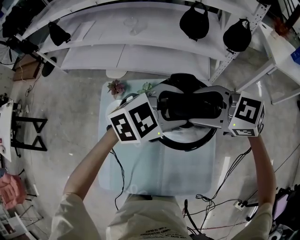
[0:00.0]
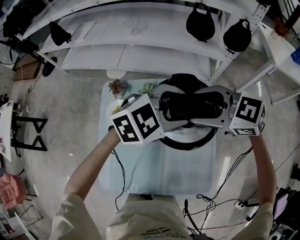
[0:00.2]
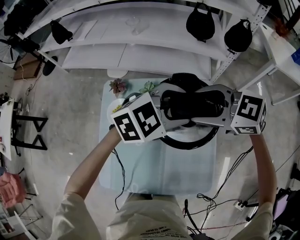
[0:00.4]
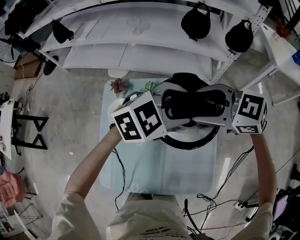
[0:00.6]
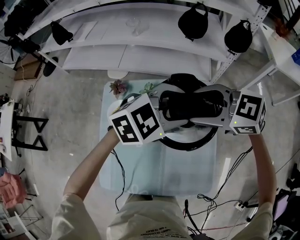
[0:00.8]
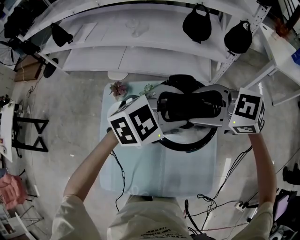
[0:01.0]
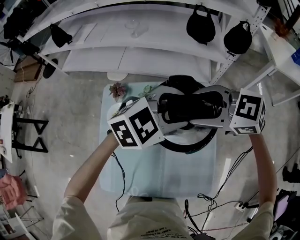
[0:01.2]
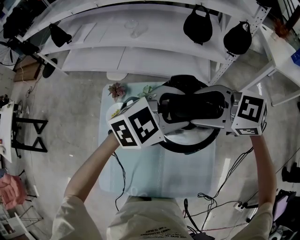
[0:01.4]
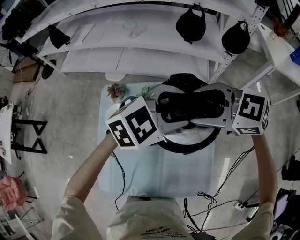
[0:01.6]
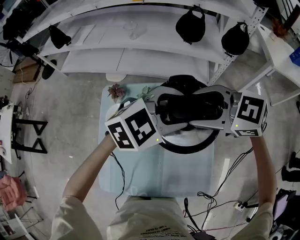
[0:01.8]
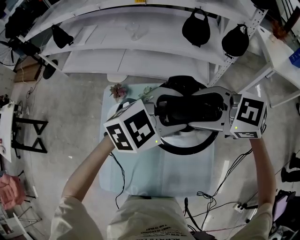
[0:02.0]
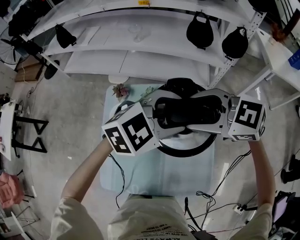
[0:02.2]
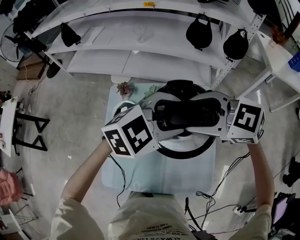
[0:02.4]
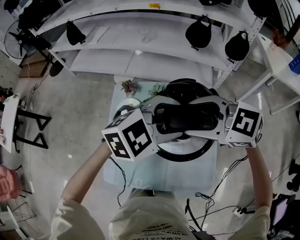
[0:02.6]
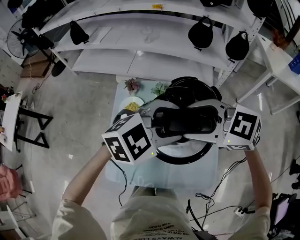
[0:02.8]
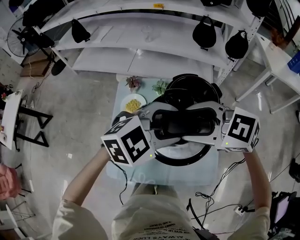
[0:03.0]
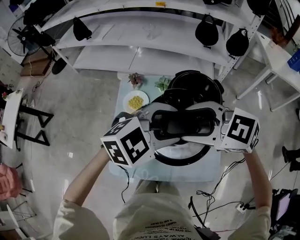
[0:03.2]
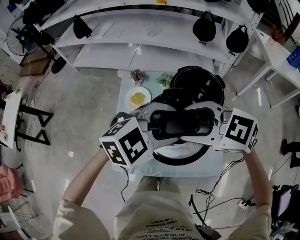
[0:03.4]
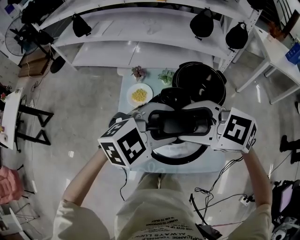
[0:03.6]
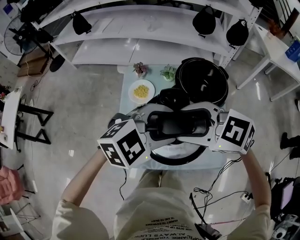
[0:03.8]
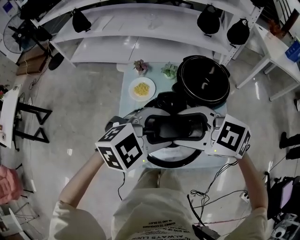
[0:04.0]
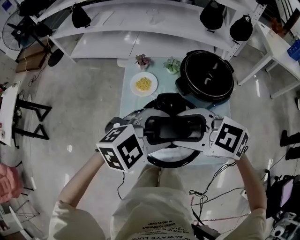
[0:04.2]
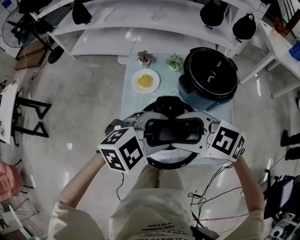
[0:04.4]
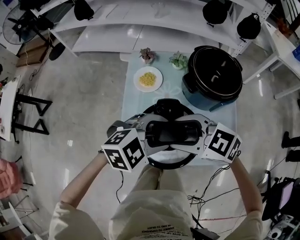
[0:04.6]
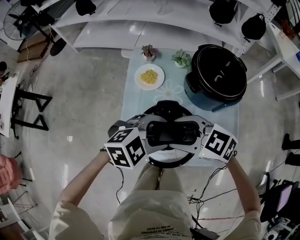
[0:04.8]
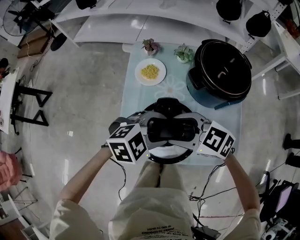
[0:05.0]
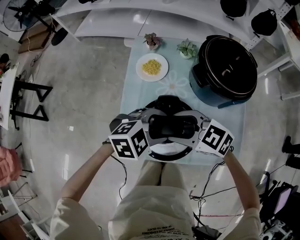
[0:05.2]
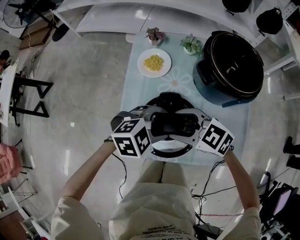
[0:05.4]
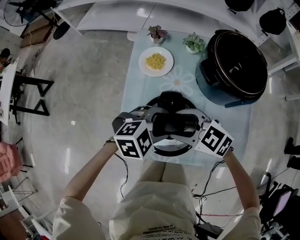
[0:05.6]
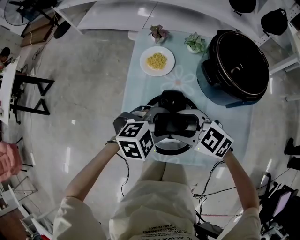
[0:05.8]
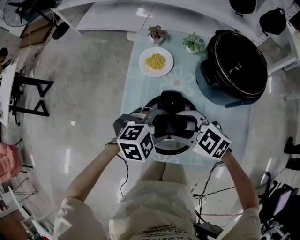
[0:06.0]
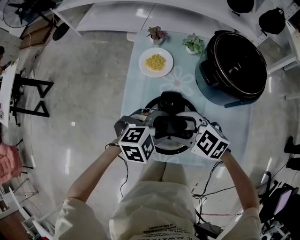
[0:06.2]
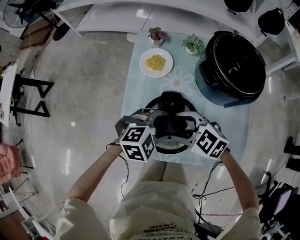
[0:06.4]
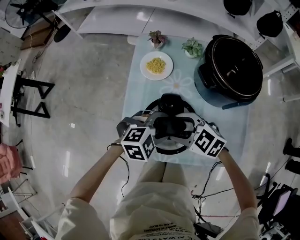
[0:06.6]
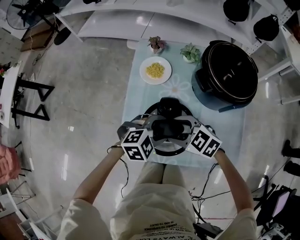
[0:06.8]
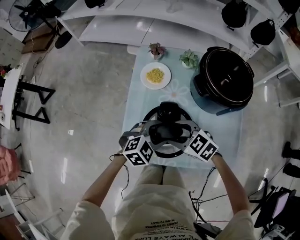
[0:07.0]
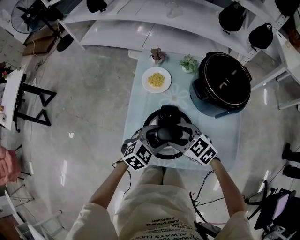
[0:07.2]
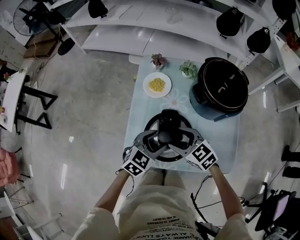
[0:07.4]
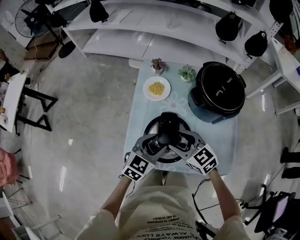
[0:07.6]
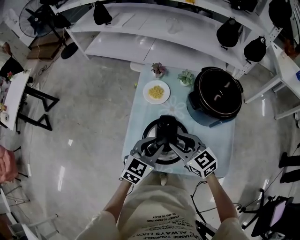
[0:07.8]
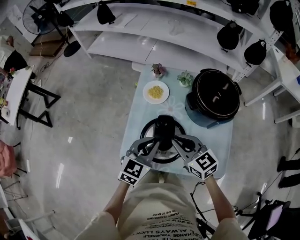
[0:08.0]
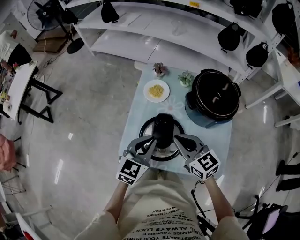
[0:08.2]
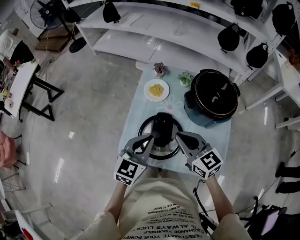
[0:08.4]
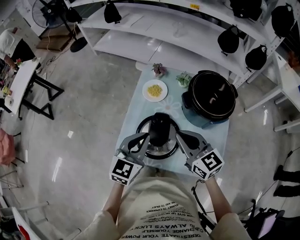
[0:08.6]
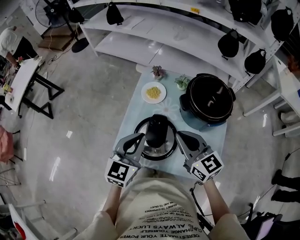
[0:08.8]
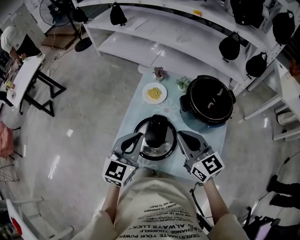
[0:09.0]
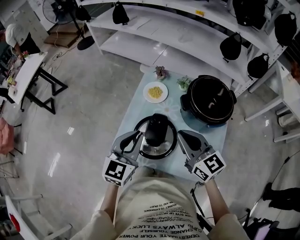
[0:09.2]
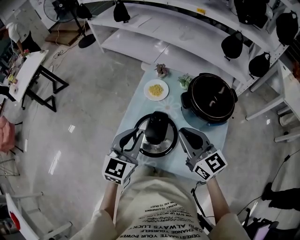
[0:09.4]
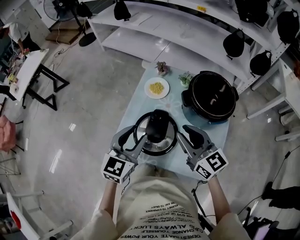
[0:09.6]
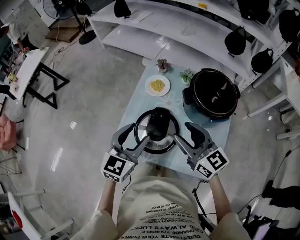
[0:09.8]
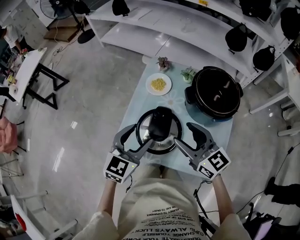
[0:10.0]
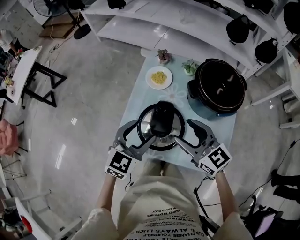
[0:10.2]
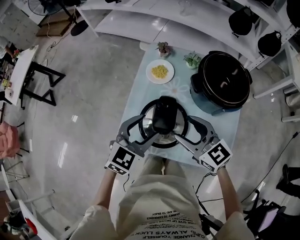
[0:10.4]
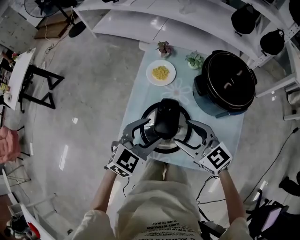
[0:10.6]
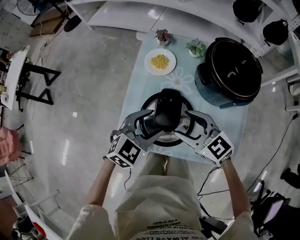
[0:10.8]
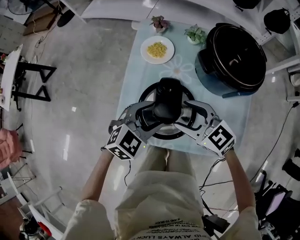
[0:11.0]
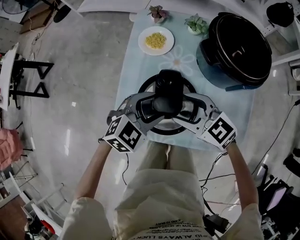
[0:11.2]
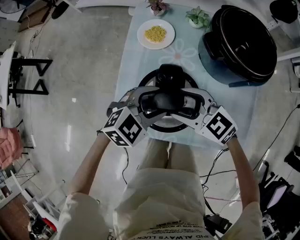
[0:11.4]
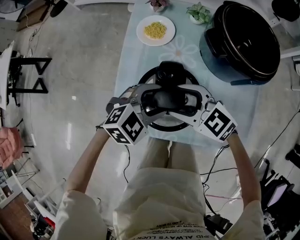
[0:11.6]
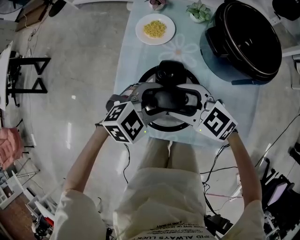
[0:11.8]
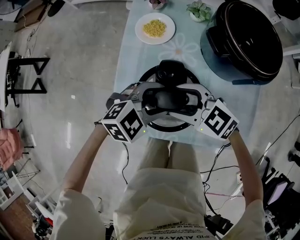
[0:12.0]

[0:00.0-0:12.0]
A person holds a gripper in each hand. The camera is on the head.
0:00.0 to 0:01.6: The grippers make only small movements.
0:01.6 to 0:03.0: The left gripper shifts by approximately 15 cm; the right gripper moves some 15 cm.
0:03.0 to 0:04.4: The left gripper moves approximately 15 cm, while the right gripper moves roughly 15 cm.
0:04.4 to 0:06.0: The two grippers go approximately 15 cm downward.
0:06.0 to 0:07.6: The right gripper ends up roughly 5 cm from where it was, and turns by roughly 20 degrees; the left gripper goes about 5 cm upward, and rotates about 50 degrees.
0:07.6 to 0:09.0: The right gripper goes roughly 15 cm upward and to the right, swivels approximately 20 degrees, and closes its fingers. Meanwhile the left gripper goes approximately 15 cm upward, turns by some 30 degrees, and closes.
0:09.0 to 0:10.4: The grippers both shift downward by roughly 5 cm. The right gripper opens its fingers, while the left gripper turns by some 20 degrees, and opens its fingers.
0:10.4 to 0:12.0: The grippers both shift downward by about 15 cm. The left gripper turns by approximately 40 degrees; the right gripper turns by about 20 degrees.

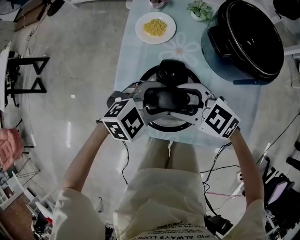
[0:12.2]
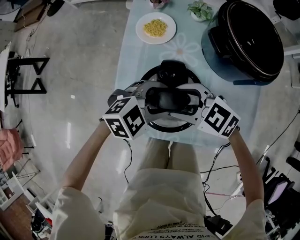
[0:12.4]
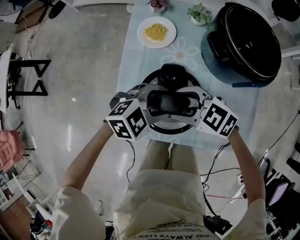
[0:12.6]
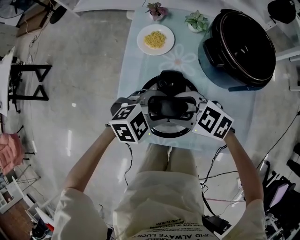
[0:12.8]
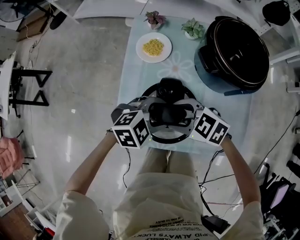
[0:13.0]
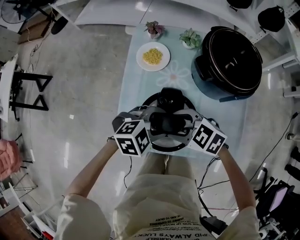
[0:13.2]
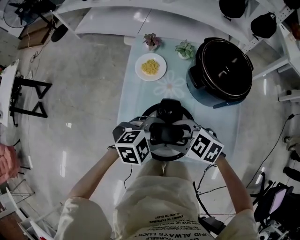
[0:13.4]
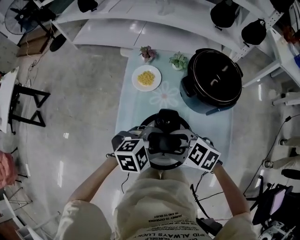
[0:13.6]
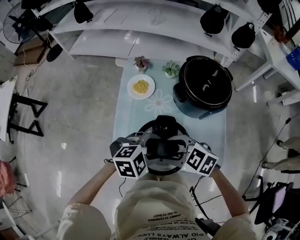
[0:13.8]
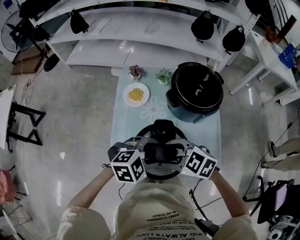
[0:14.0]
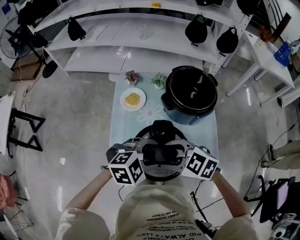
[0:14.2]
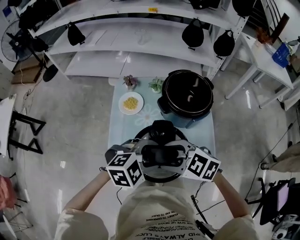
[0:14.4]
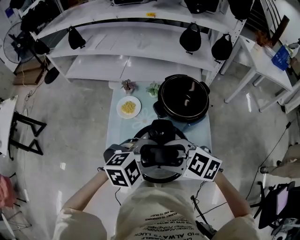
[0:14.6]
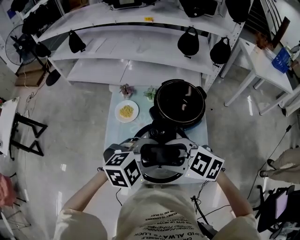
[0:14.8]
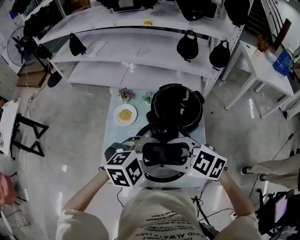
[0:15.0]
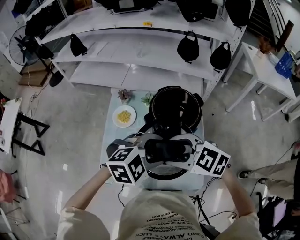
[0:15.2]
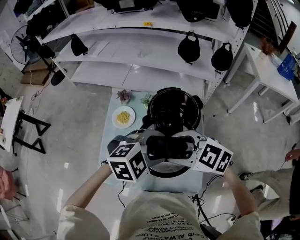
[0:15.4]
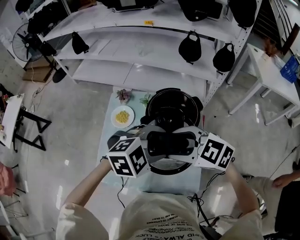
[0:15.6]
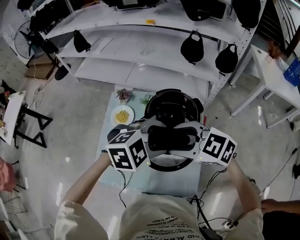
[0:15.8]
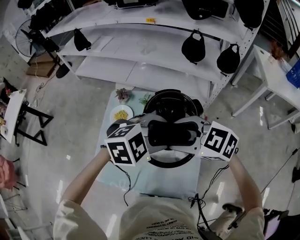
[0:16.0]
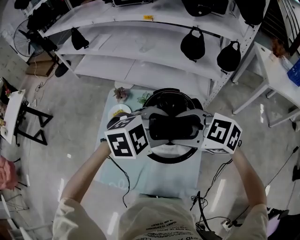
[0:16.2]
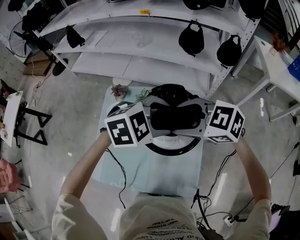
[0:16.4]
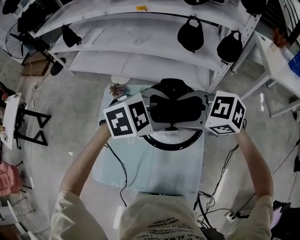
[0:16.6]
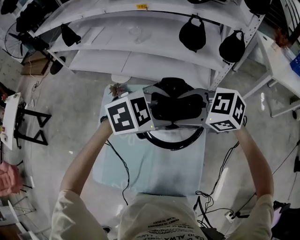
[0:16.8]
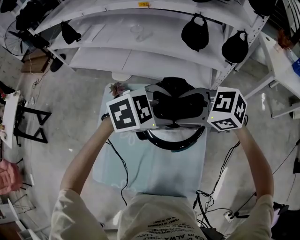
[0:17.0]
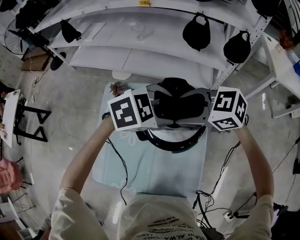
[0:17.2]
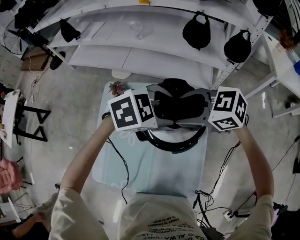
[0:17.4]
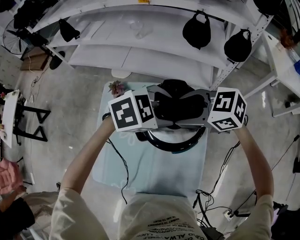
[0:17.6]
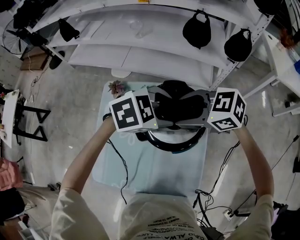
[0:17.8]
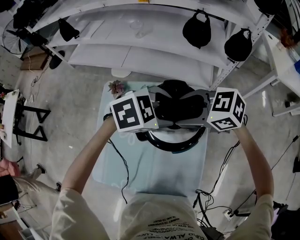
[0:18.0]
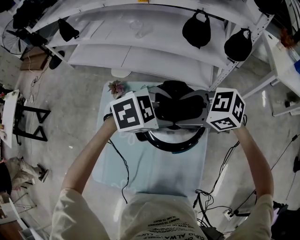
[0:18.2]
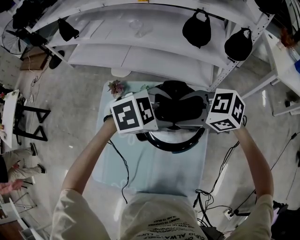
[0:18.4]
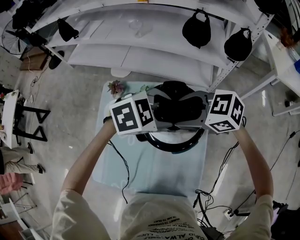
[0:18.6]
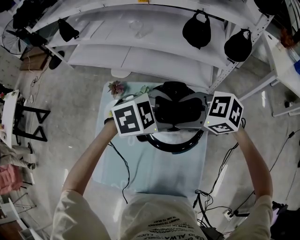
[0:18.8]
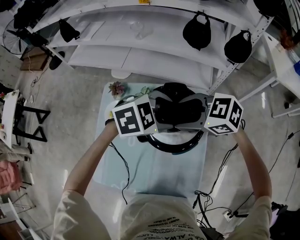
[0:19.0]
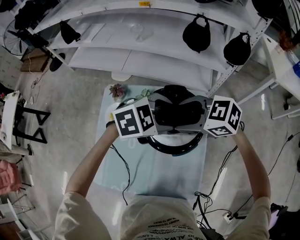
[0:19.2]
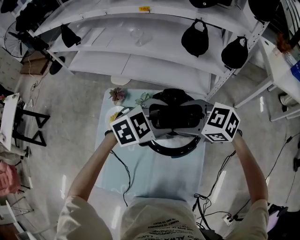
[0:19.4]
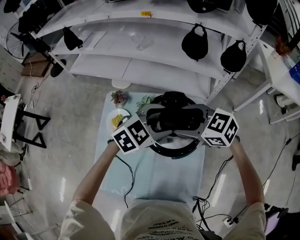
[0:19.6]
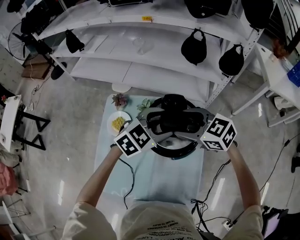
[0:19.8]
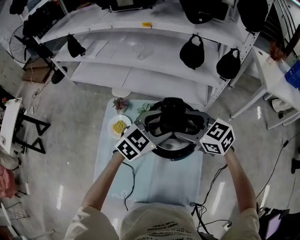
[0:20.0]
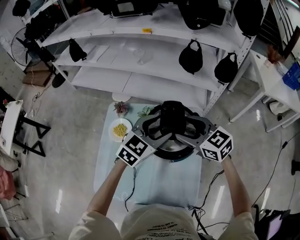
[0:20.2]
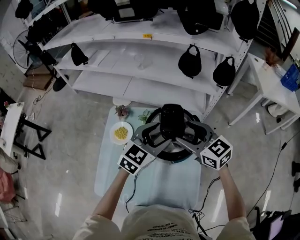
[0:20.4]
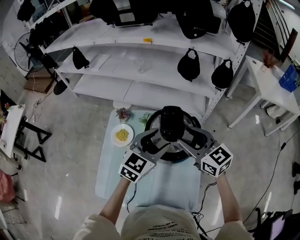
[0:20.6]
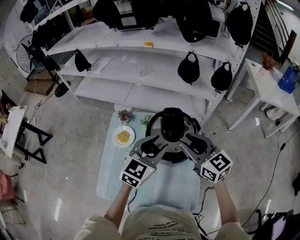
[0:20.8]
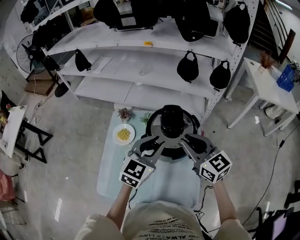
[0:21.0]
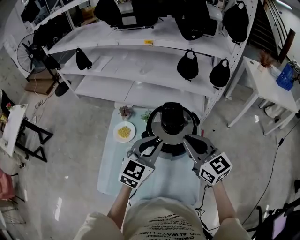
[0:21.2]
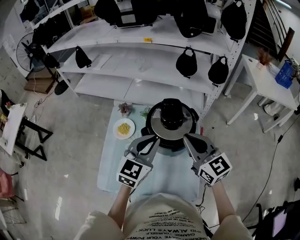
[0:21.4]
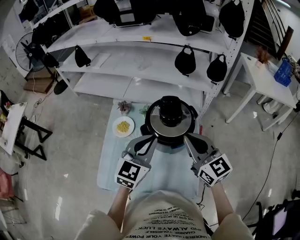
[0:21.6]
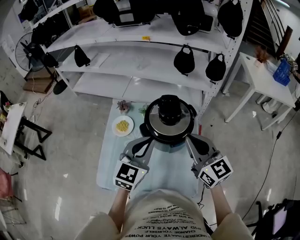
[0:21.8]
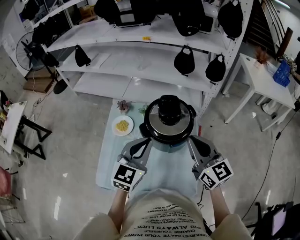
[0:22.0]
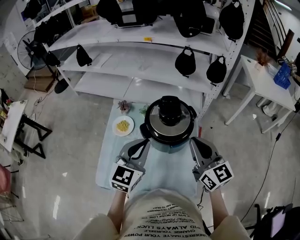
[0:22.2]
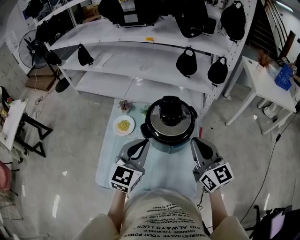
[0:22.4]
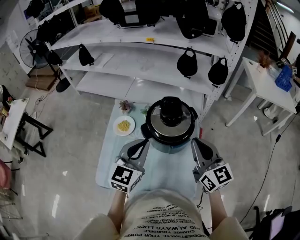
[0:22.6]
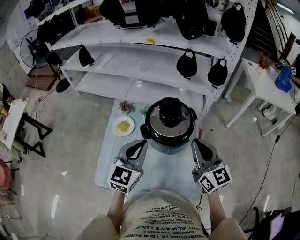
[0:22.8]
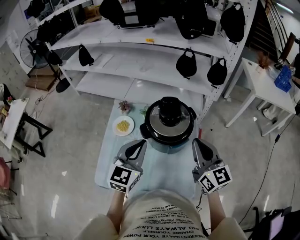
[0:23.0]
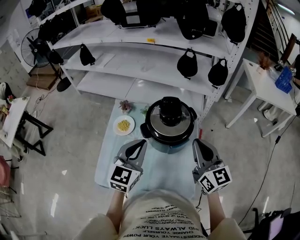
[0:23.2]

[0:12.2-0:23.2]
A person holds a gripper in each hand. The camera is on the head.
0:12.2 to 0:13.8: Both grippers travel together upward, approximately 5 cm.
0:13.8 to 0:15.4: The left gripper moves approximately 20 cm. Meanwhile the right gripper changes place by approximately 20 cm.
0:15.4 to 0:17.0: The left gripper changes place by approximately 20 cm. The right gripper shifts by roughly 20 cm.
0:17.0 to 0:18.4: There are only small adjustments of the grippers.
0:18.4 to 0:20.0: The right gripper rotates some 20 degrees; the left gripper turns by roughly 30 degrees.
0:20.0 to 0:21.6: The left gripper shifts roughly 15 cm backward, upward and to the left, turns by approximately 30 degrees, and closes its fingers, while the right gripper heads backward and upward, covering some 15 cm, swivels approximately 30 degrees, and closes.
0:21.6 to 0:23.2: The right gripper ends up roughly 5 cm from where it was.

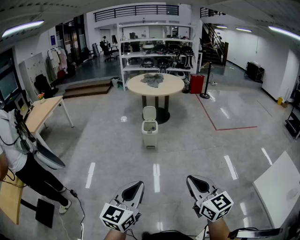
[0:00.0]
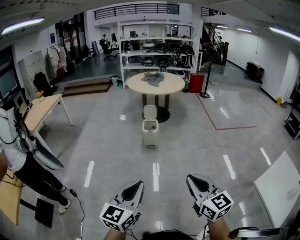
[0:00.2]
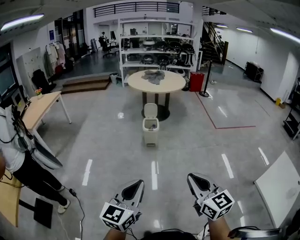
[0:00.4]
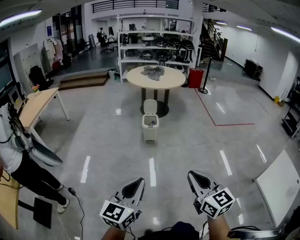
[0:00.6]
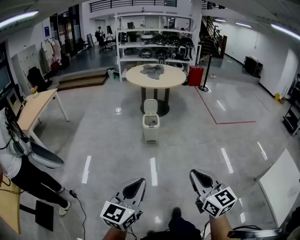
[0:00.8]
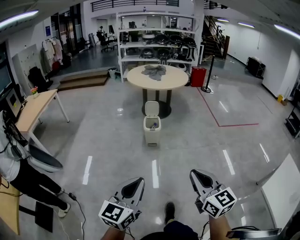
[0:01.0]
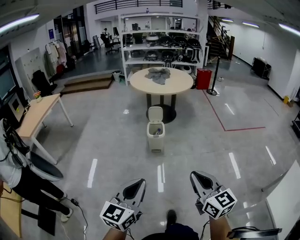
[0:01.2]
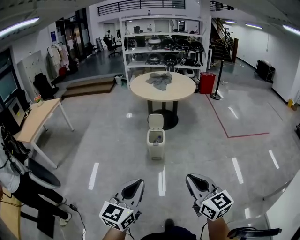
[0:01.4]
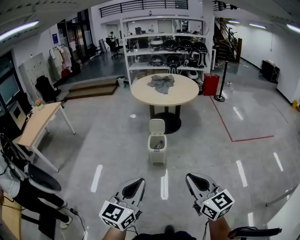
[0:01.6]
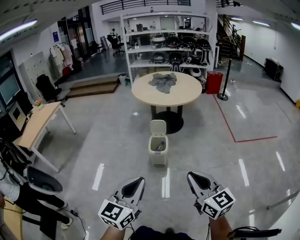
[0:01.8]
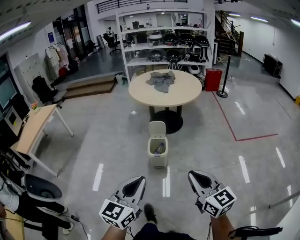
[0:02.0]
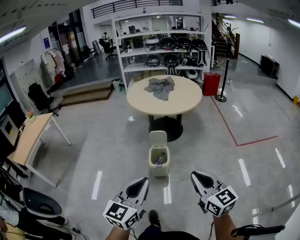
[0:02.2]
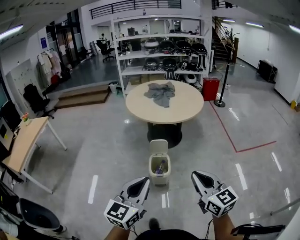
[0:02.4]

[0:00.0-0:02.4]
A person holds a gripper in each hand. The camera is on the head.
0:00.0 to 0:01.2: Both grippers move forward, approximately 20 cm.
0:01.2 to 0:02.4: The pair of grippers is taken forward, approximately 40 cm.
